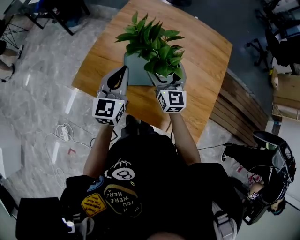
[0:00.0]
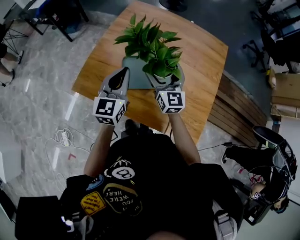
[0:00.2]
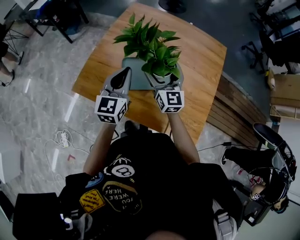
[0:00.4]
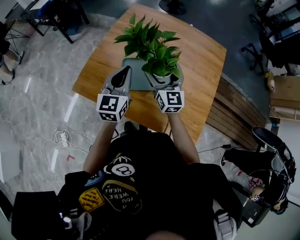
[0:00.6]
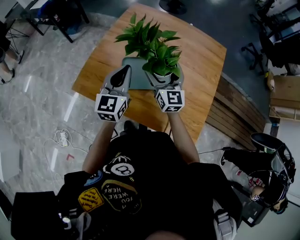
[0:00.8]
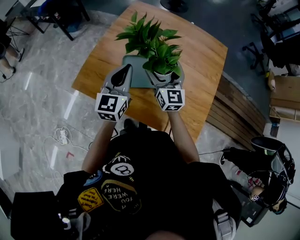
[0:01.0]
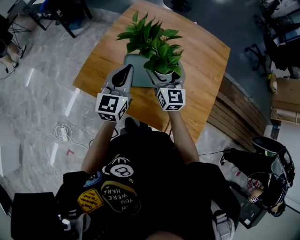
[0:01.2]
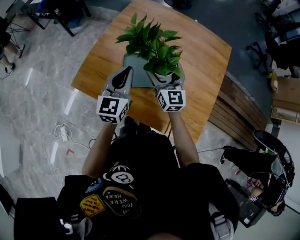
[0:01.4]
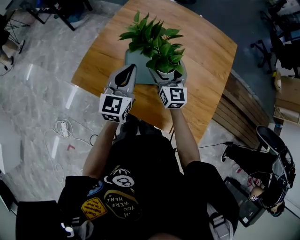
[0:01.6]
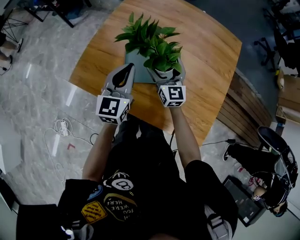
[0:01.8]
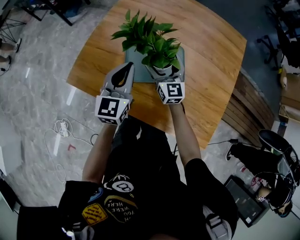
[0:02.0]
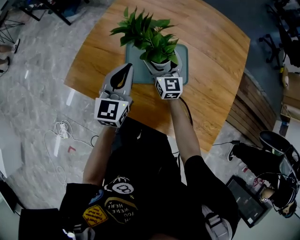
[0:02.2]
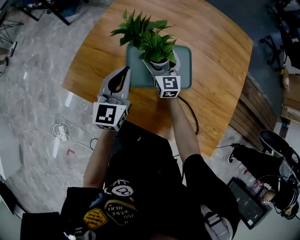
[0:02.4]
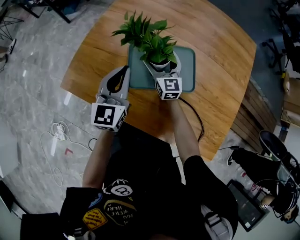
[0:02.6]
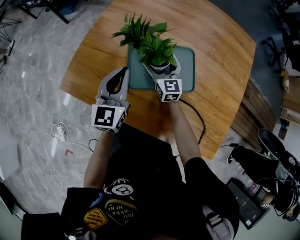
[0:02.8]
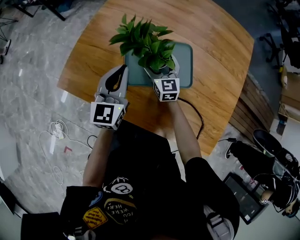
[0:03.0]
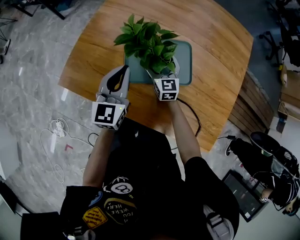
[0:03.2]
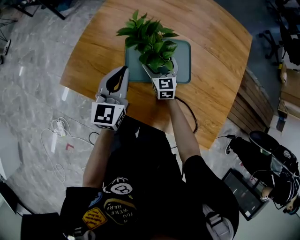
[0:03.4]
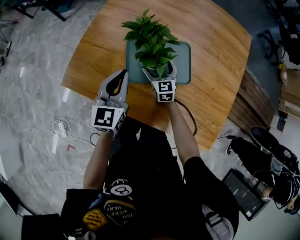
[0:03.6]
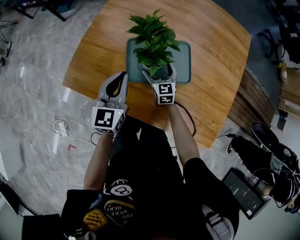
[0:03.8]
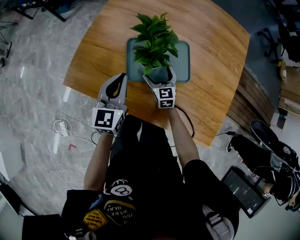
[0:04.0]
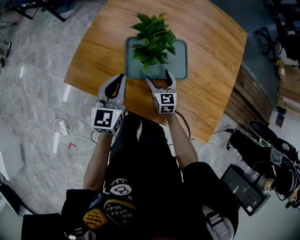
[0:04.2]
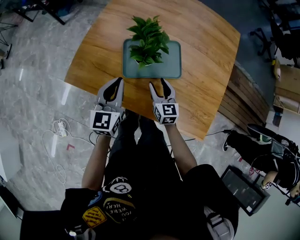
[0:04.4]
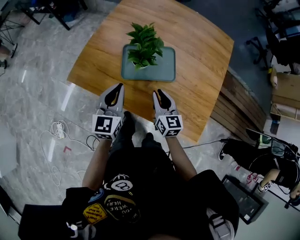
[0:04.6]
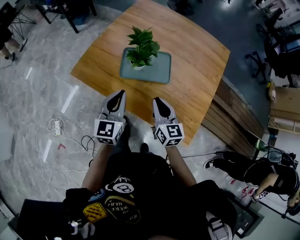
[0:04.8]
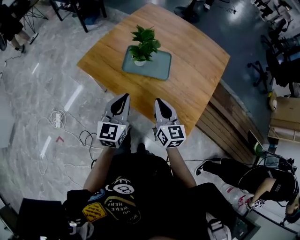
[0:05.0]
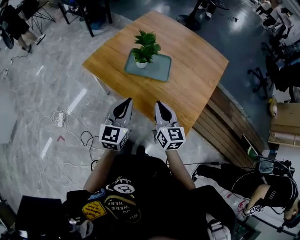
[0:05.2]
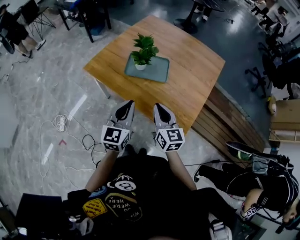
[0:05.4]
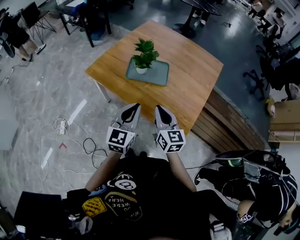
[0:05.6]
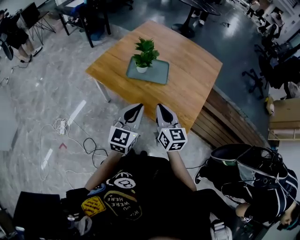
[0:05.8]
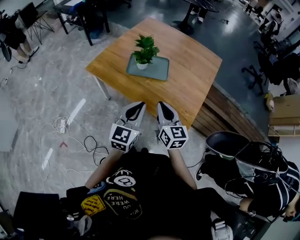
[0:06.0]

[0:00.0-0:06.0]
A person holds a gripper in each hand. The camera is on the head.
0:00.0 to 0:01.6: The right gripper shifts about 5 cm downward.
0:01.6 to 0:03.0: The left gripper moves downward and to the left, approximately 15 cm. Meanwhile the right gripper moves downward, some 20 cm.
0:03.0 to 0:04.4: The right gripper is displaced backward by approximately 15 cm, and closes up; the left gripper goes roughly 10 cm backward.
0:04.4 to 0:06.0: The left gripper is displaced backward, upward and to the right by roughly 40 cm. Meanwhile the right gripper travels backward and upward by roughly 40 cm, and closes up.

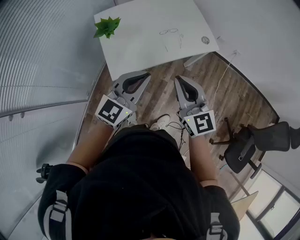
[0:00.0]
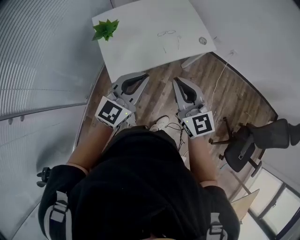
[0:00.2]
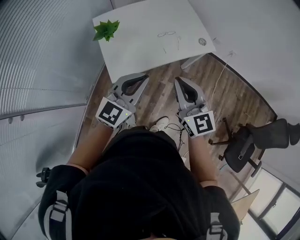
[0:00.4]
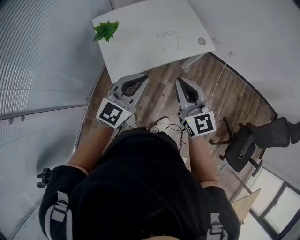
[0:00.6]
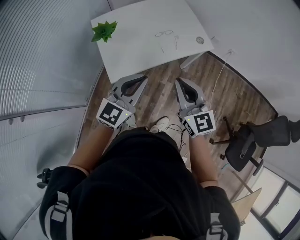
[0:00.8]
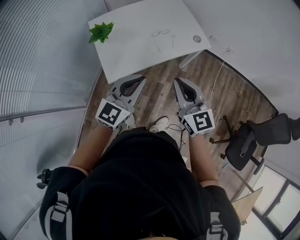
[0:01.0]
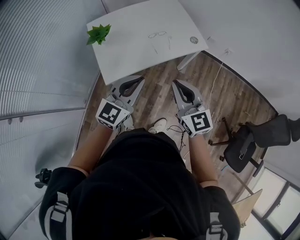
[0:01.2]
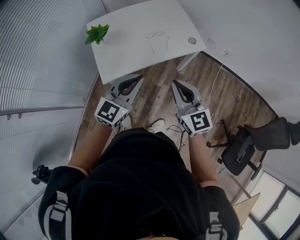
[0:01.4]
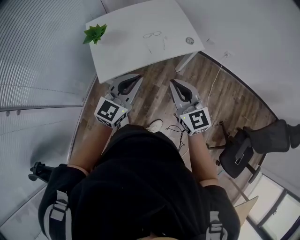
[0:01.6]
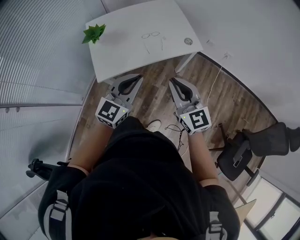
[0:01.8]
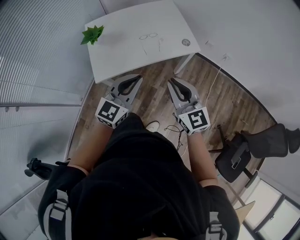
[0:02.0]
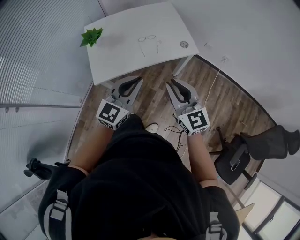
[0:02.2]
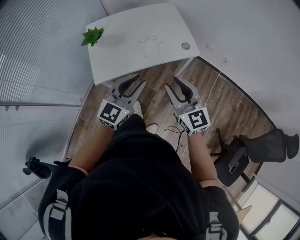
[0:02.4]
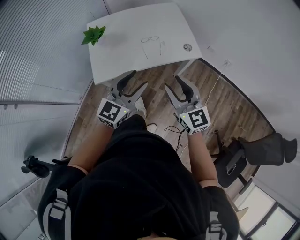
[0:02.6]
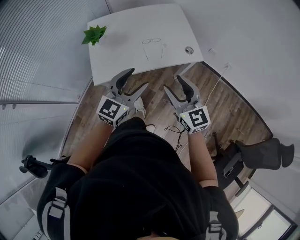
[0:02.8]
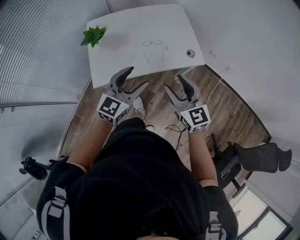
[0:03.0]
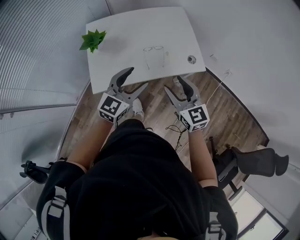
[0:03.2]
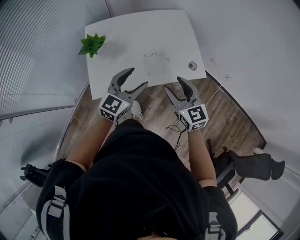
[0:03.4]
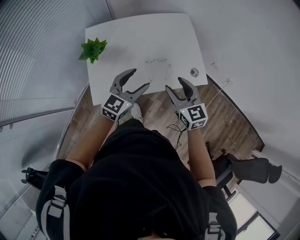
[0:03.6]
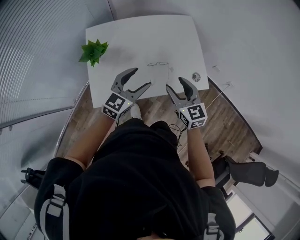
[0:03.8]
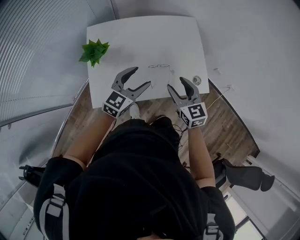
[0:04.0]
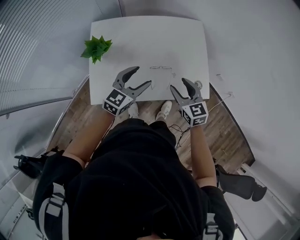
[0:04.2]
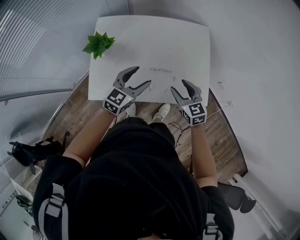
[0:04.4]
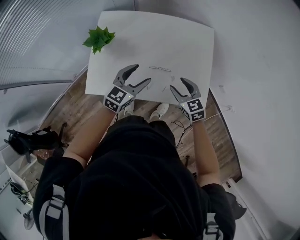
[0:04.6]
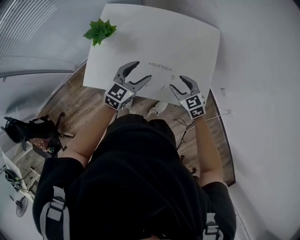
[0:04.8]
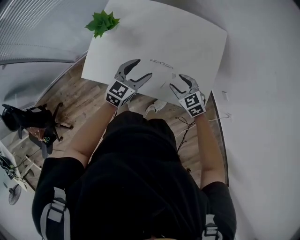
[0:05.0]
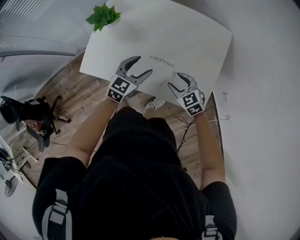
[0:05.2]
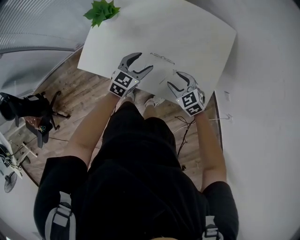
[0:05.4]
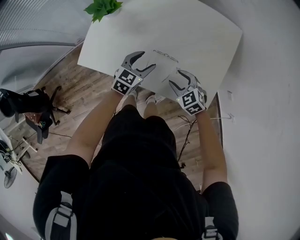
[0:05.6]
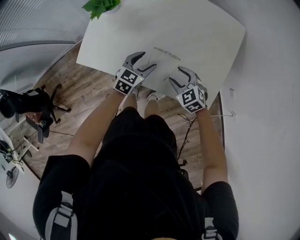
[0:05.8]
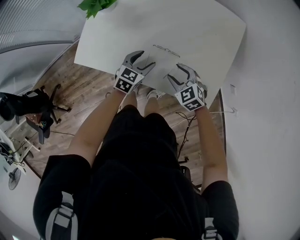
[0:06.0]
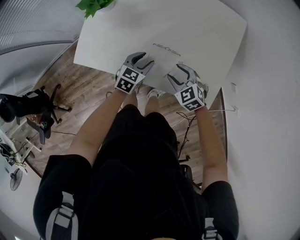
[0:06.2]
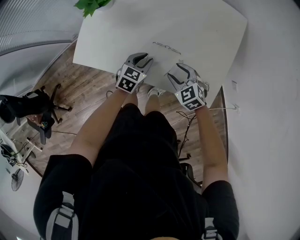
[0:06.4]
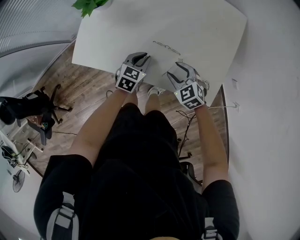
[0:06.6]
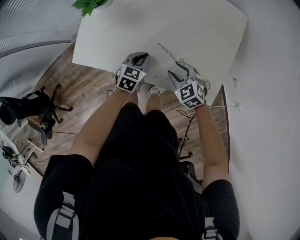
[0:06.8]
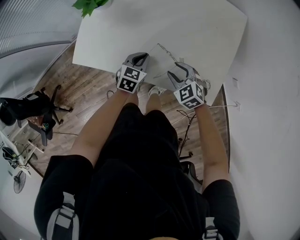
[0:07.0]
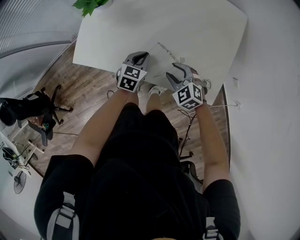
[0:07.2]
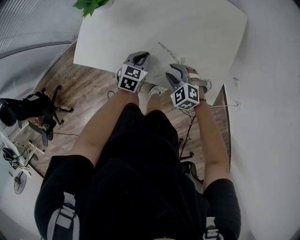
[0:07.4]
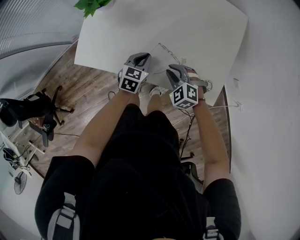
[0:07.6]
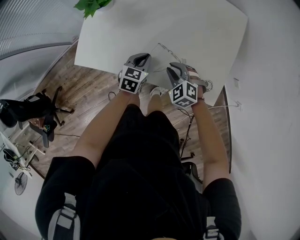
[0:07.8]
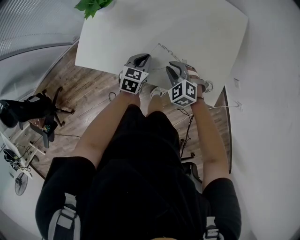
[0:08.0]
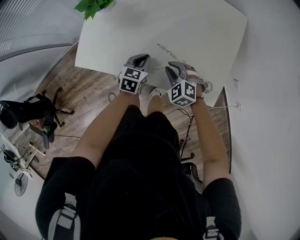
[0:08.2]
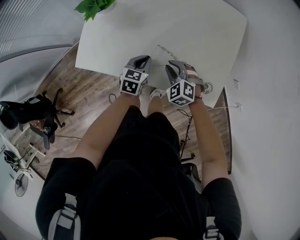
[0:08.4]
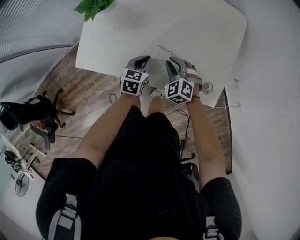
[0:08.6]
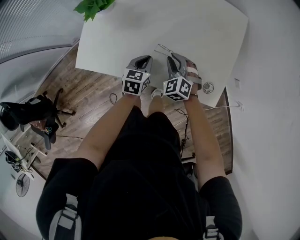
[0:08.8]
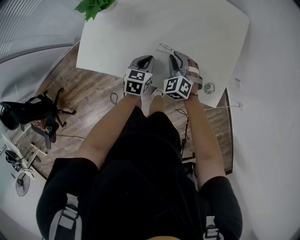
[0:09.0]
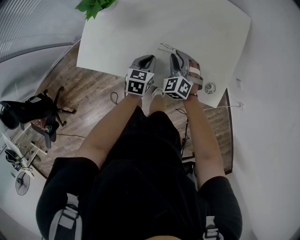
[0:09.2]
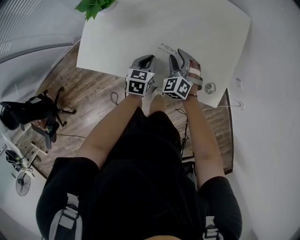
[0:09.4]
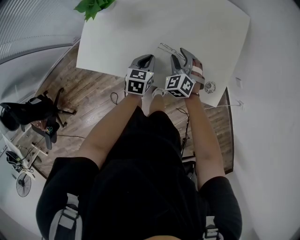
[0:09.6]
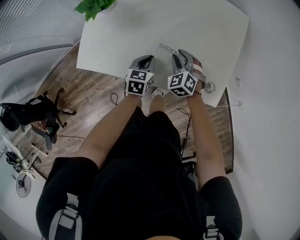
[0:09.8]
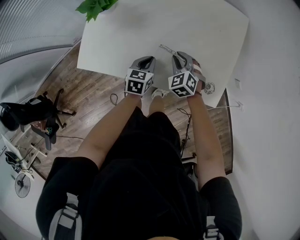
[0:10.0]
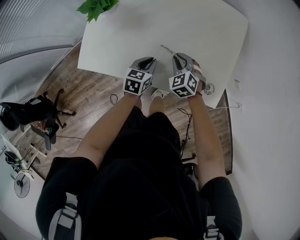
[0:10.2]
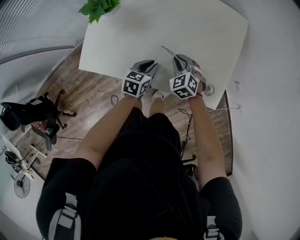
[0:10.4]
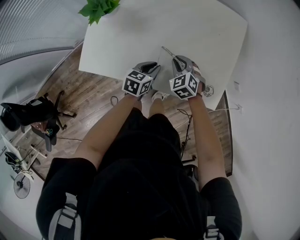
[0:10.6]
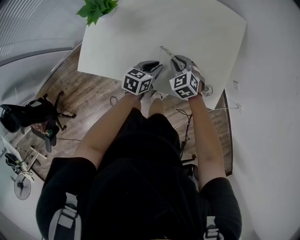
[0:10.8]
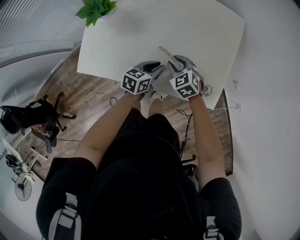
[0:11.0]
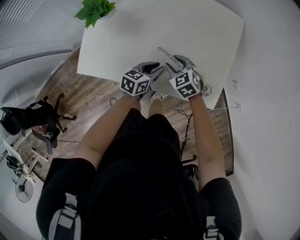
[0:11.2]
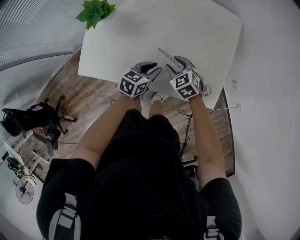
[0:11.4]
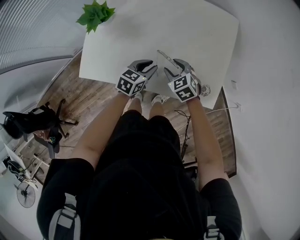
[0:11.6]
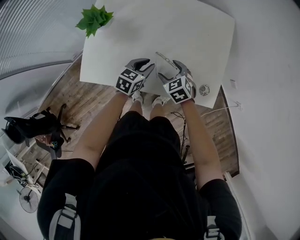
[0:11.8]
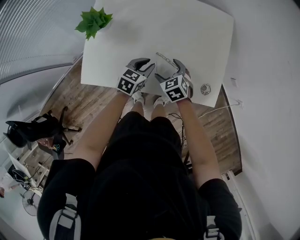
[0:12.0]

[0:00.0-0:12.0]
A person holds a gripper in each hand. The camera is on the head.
0:00.0 to 0:01.6: Both grippers move to the right, roughly 10 cm.
0:01.6 to 0:03.0: The two grippers go roughly 10 cm forward. The right gripper opens its fingers, while the left gripper opens.
0:03.0 to 0:04.4: Both grippers travel together forward and downward, approximately 25 cm. The right gripper rotates some 30 degrees.
0:04.4 to 0:06.0: Both grippers move downward, some 20 cm. The left gripper changes its angle by approximately 30 degrees. Meanwhile the right gripper swivels some 40 degrees.
0:06.0 to 0:07.6: The left gripper closes its fingers.
0:07.6 to 0:09.0: The right gripper is displaced forward by about 10 cm, and changes its angle by some 20 degrees.
0:09.0 to 0:10.4: The grippers make only small movements.
0:10.4 to 0:12.0: The left gripper shifts by approximately 5 cm. The right gripper swivels approximately 20 degrees, and opens up.

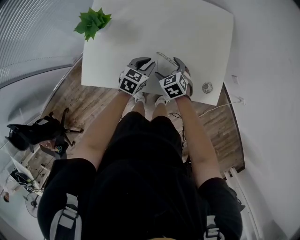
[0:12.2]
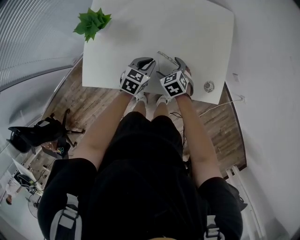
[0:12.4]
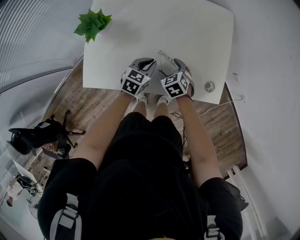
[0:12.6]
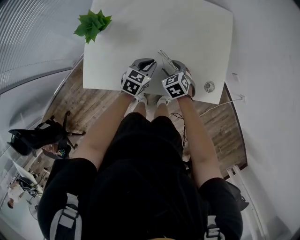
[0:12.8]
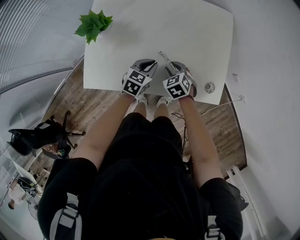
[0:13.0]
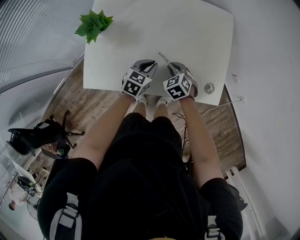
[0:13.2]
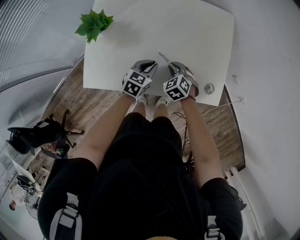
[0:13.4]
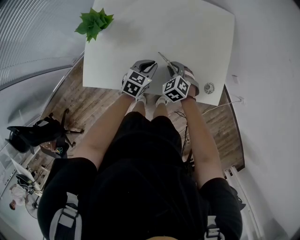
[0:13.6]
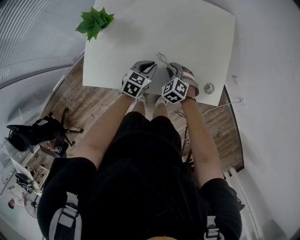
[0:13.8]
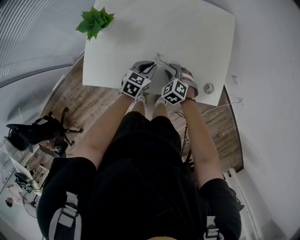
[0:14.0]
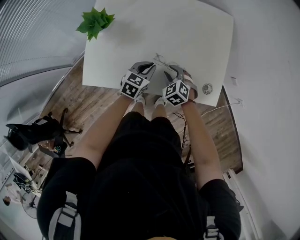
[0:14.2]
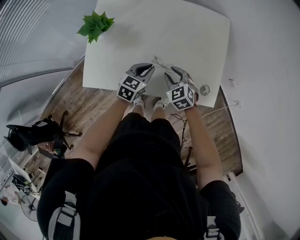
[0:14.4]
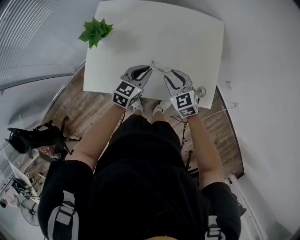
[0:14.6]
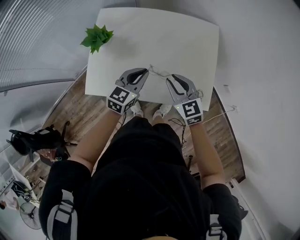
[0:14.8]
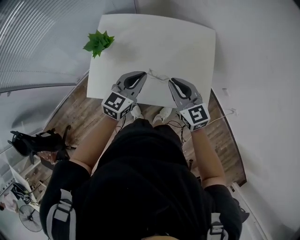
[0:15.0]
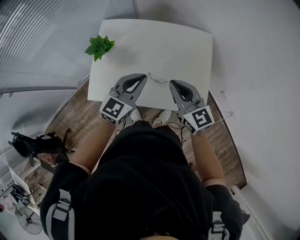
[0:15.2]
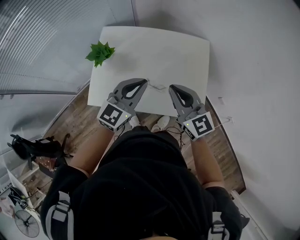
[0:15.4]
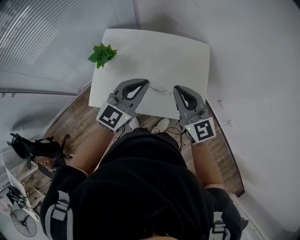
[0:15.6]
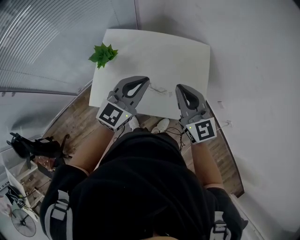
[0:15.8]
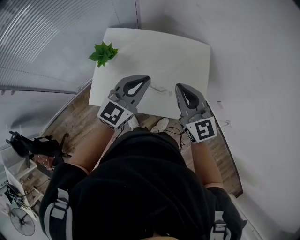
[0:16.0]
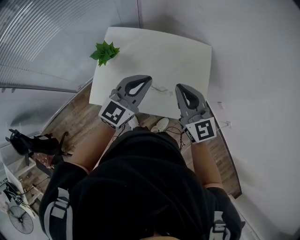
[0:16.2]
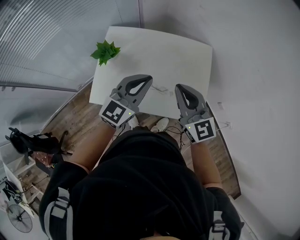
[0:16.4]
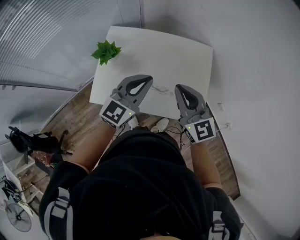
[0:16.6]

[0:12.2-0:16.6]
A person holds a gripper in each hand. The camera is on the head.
0:12.2 to 0:13.6: The right gripper closes.
0:13.6 to 0:15.2: The two grippers go roughly 30 cm upward. The right gripper points its fingers approximately 50 degrees further upward. The left gripper rotates roughly 30 degrees.
0:15.2 to 0:16.6: The grippers both shift upward by approximately 5 cm.

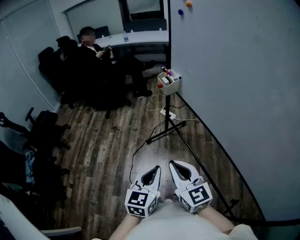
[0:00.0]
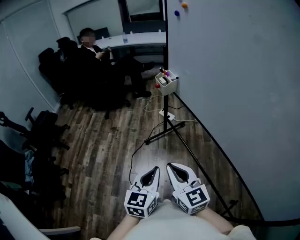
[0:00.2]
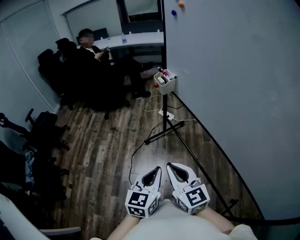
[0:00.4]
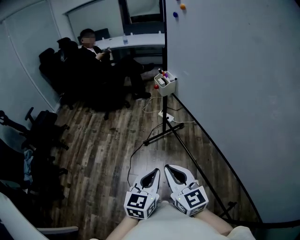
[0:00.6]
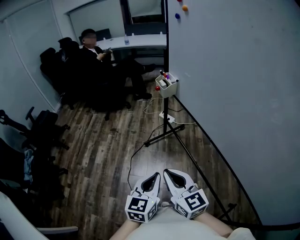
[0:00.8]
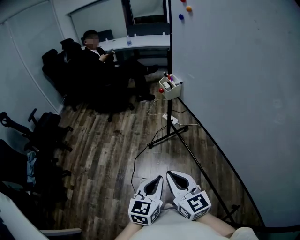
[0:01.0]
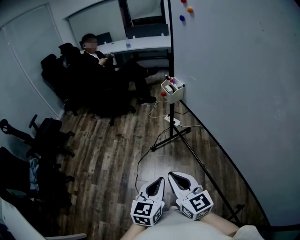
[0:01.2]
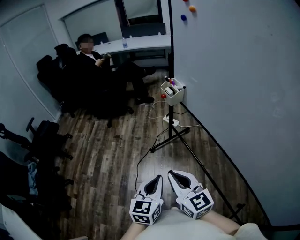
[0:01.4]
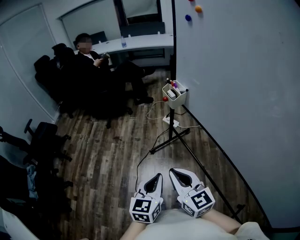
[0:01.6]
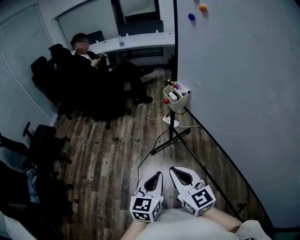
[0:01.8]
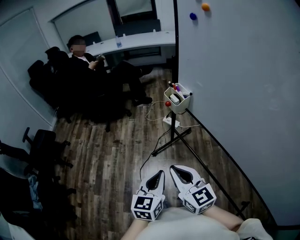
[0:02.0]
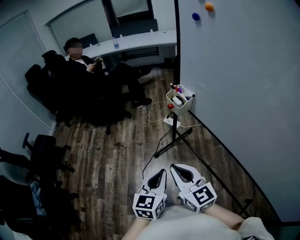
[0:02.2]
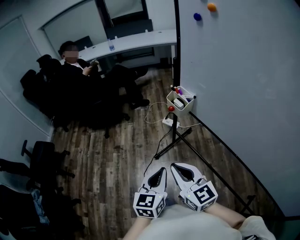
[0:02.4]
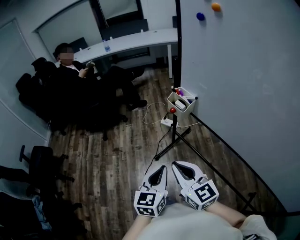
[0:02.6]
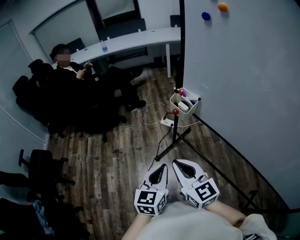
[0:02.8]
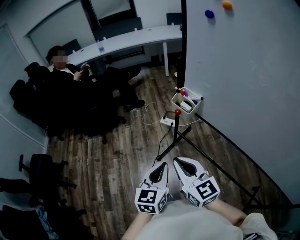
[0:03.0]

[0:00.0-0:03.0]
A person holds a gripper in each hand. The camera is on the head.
0:00.0 to 0:01.6: Both grippers travel together forward, about 10 cm.
0:01.6 to 0:03.0: Both grippers travel together forward and to the left, roughly 20 cm.
